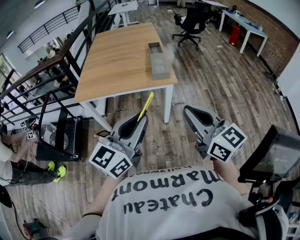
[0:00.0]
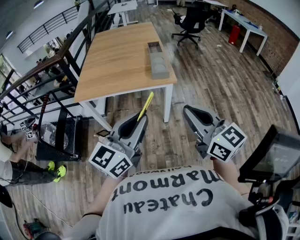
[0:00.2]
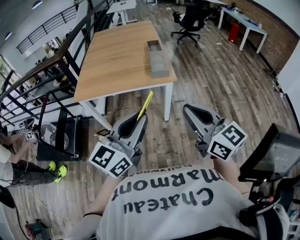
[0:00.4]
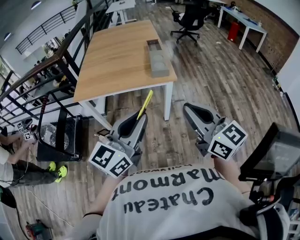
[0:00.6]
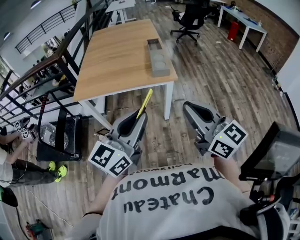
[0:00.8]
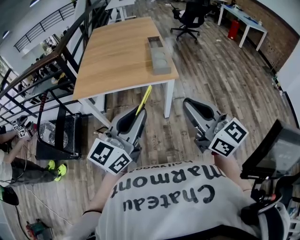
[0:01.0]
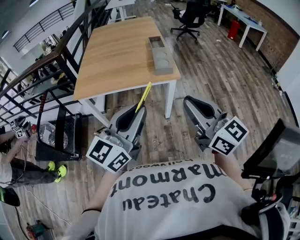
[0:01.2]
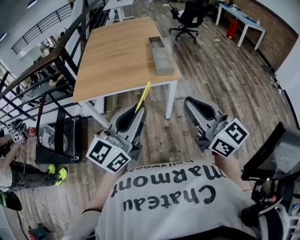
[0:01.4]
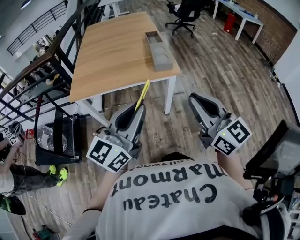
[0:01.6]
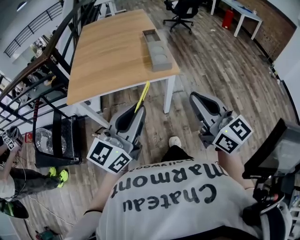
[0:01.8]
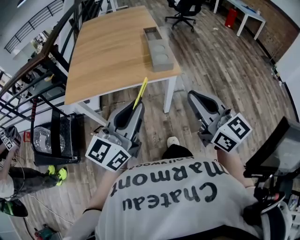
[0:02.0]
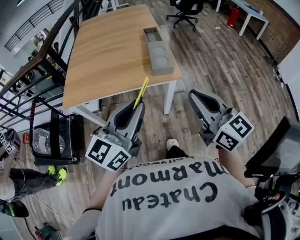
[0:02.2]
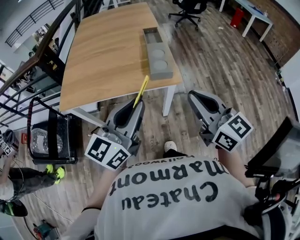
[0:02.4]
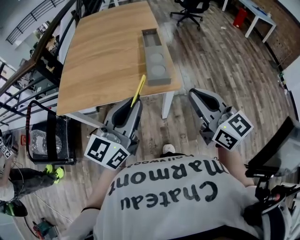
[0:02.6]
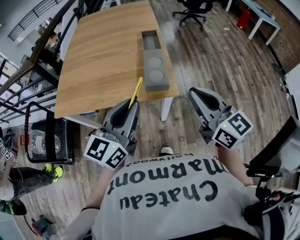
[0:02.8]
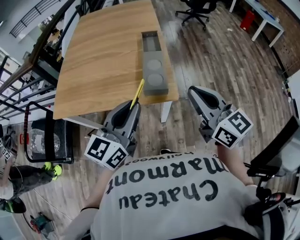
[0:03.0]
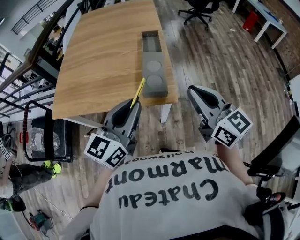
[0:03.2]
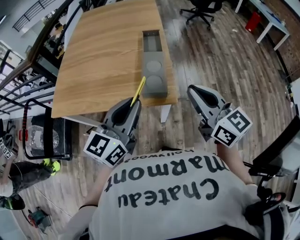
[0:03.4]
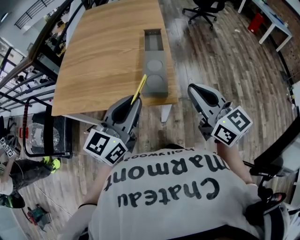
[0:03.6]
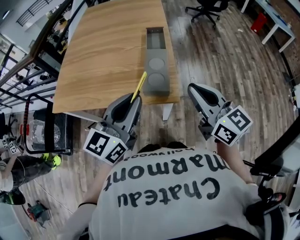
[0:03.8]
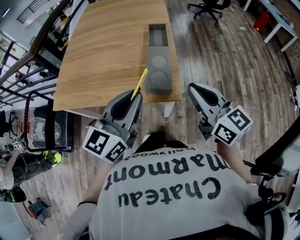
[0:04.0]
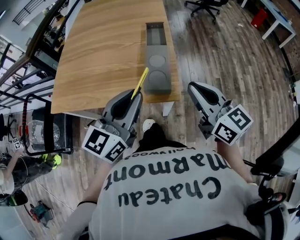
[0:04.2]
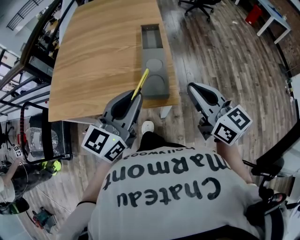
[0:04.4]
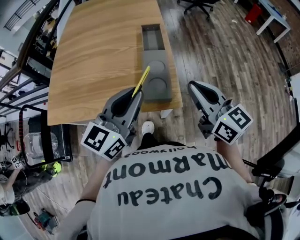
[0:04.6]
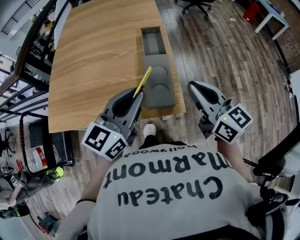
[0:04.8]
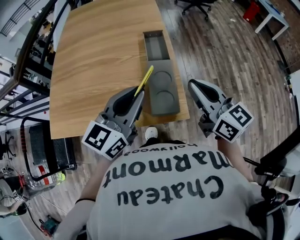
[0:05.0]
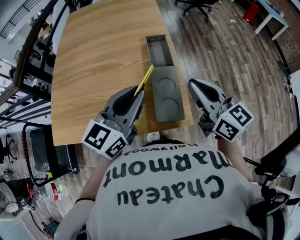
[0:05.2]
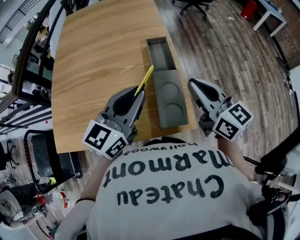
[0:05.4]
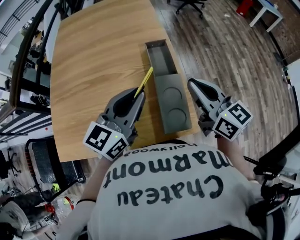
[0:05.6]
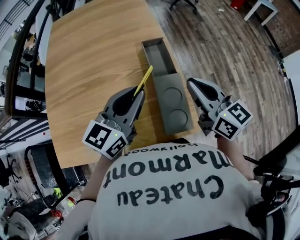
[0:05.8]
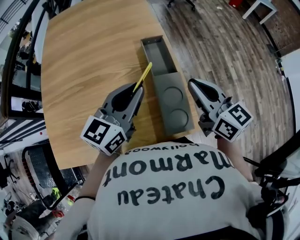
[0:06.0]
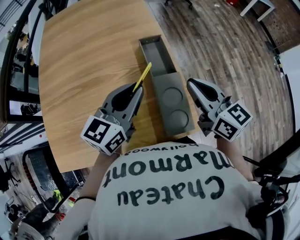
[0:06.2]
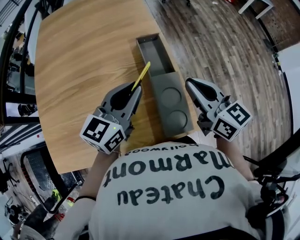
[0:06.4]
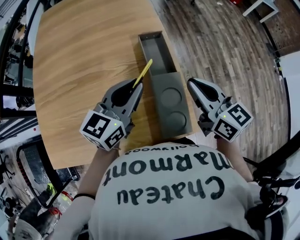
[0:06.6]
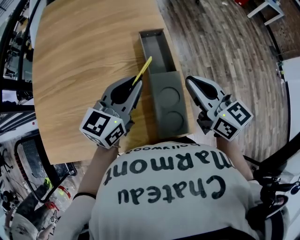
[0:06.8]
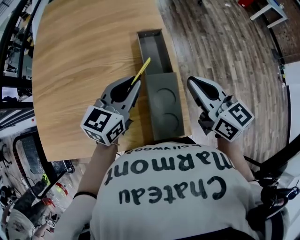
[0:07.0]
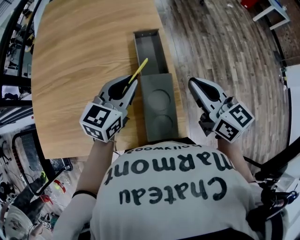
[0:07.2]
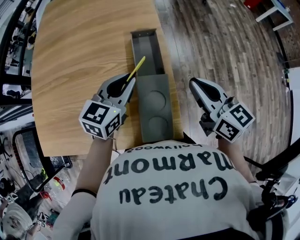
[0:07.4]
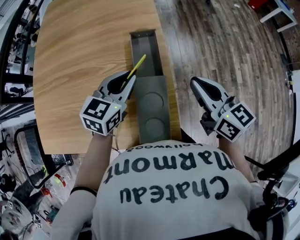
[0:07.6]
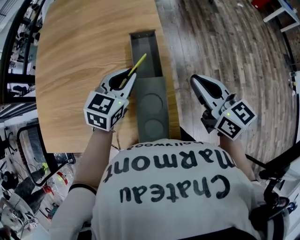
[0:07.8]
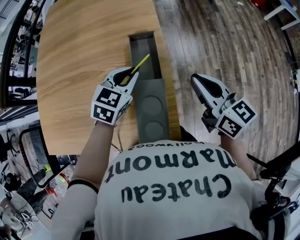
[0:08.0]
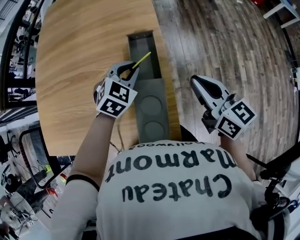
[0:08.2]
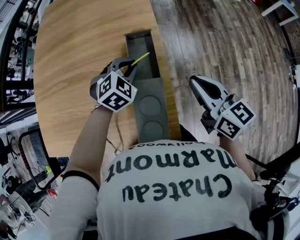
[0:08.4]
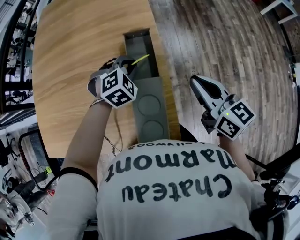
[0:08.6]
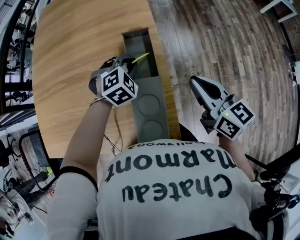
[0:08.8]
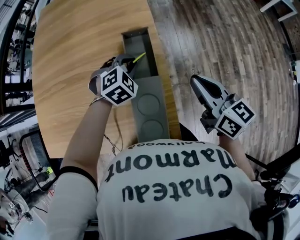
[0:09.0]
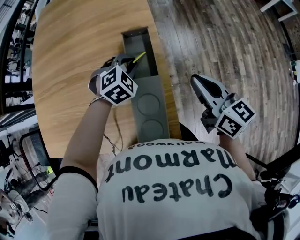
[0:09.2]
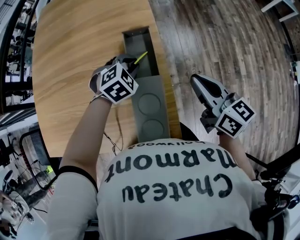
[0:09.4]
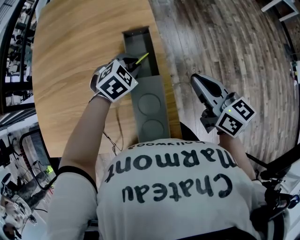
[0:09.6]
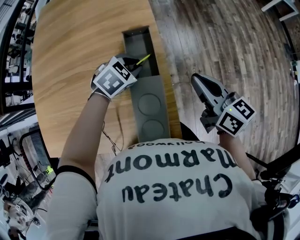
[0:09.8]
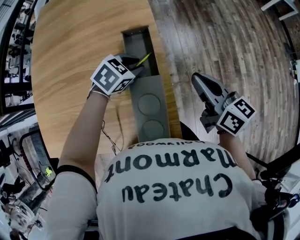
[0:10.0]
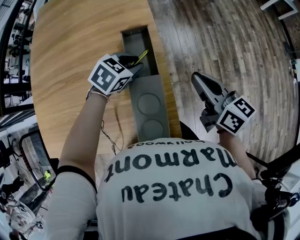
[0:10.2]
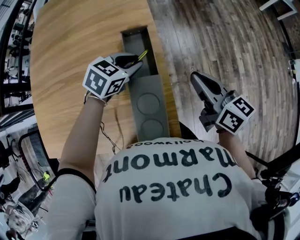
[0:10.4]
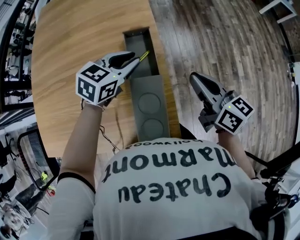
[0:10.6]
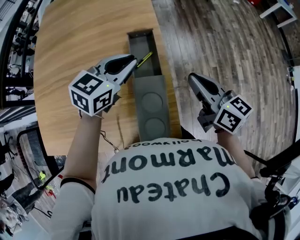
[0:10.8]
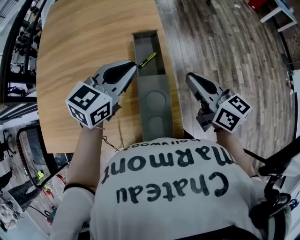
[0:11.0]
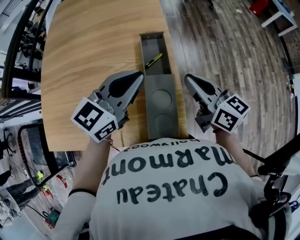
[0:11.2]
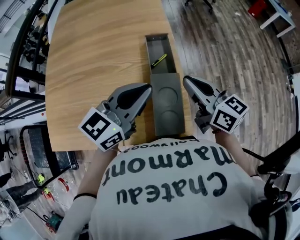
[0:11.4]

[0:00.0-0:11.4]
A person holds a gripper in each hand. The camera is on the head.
0:00.0 to 0:01.4: The left gripper shifts by about 5 cm; the right gripper ends up about 5 cm from where it was.
0:01.4 to 0:02.8: Both grippers move forward, approximately 25 cm.
0:02.8 to 0:04.2: The grippers both shift forward by approximately 10 cm.
0:04.2 to 0:05.6: The right gripper moves forward and to the left, some 20 cm. Meanwhile the left gripper moves forward, some 20 cm.
0:05.6 to 0:07.2: The left gripper is displaced downward and forward by about 15 cm; the right gripper goes about 5 cm downward.
0:07.2 to 0:08.6: The right gripper moves to the right, about 5 cm. Meanwhile the left gripper shifts some 15 cm downward, forward and to the right, and points its fingers approximately 40 degrees further downward.
0:08.6 to 0:10.0: The left gripper swivels about 30 degrees.
0:10.0 to 0:11.4: The right gripper goes roughly 10 cm to the left and backward. The left gripper is displaced upward and backward by some 25 cm, and points its fingers roughly 50 degrees further upward.

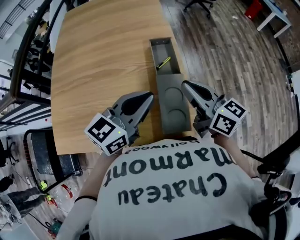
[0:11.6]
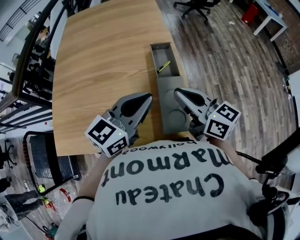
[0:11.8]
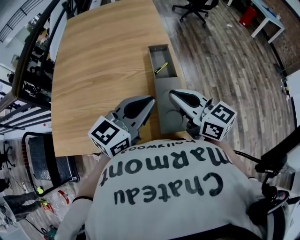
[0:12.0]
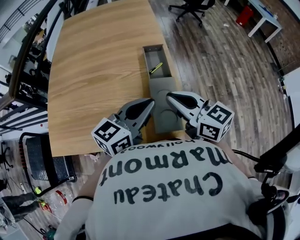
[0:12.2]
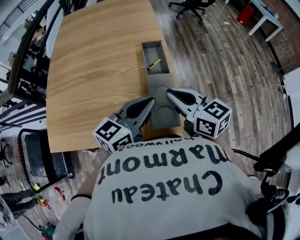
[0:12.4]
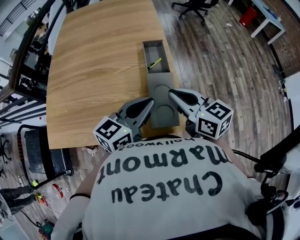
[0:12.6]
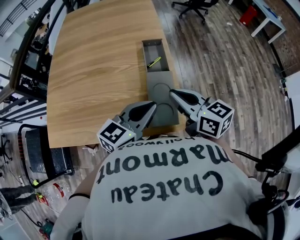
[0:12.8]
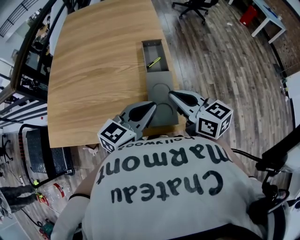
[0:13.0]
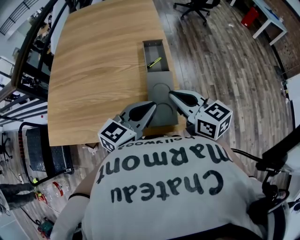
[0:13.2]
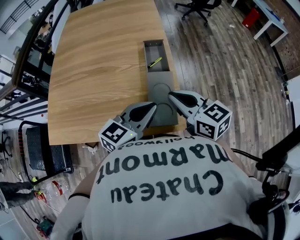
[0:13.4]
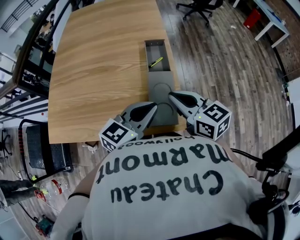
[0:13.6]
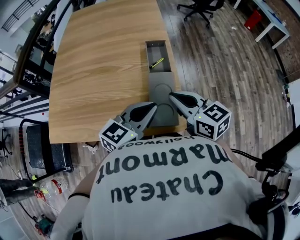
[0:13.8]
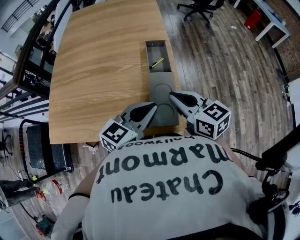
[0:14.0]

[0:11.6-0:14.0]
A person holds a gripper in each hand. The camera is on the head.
0:11.6 to 0:12.8: Both grippers travel together backward, roughly 5 cm.
0:12.8 to 0:14.0: The grippers move only a little.

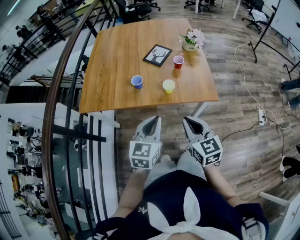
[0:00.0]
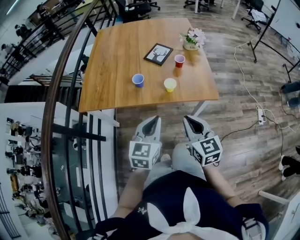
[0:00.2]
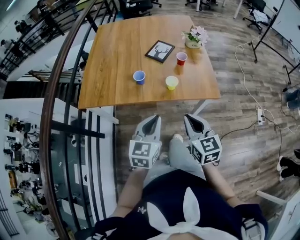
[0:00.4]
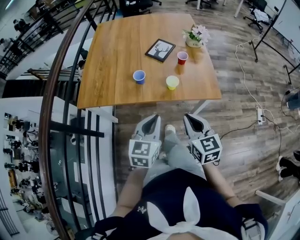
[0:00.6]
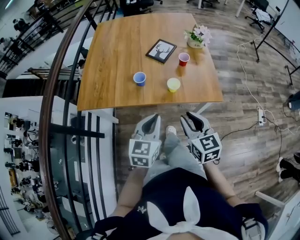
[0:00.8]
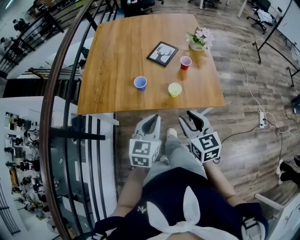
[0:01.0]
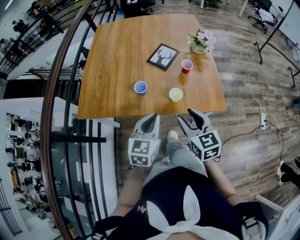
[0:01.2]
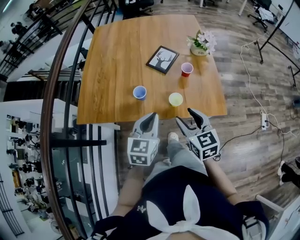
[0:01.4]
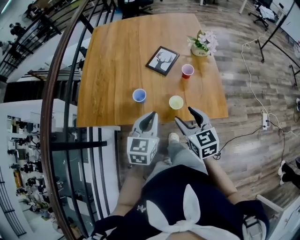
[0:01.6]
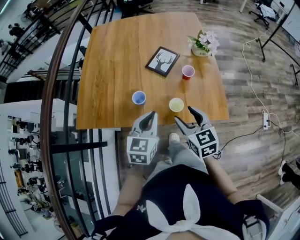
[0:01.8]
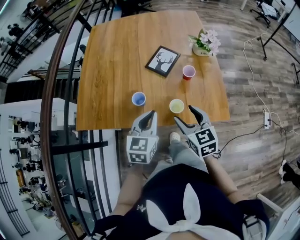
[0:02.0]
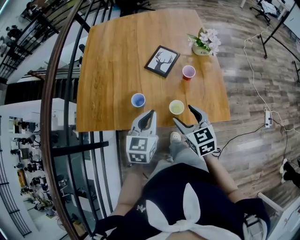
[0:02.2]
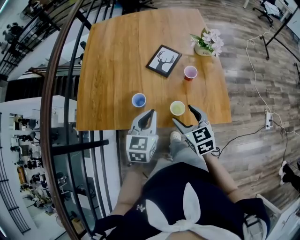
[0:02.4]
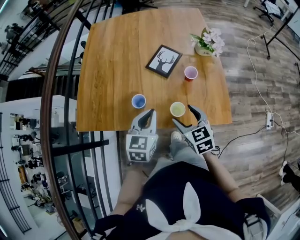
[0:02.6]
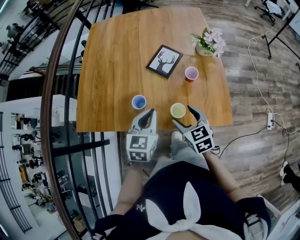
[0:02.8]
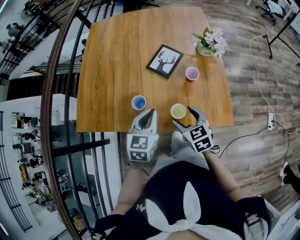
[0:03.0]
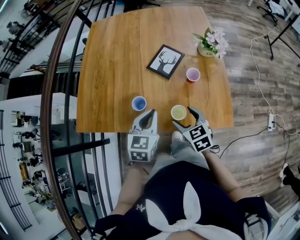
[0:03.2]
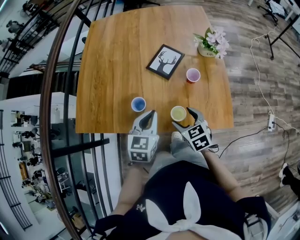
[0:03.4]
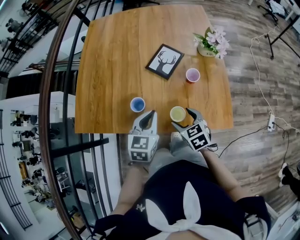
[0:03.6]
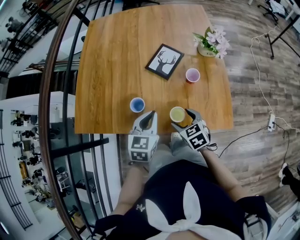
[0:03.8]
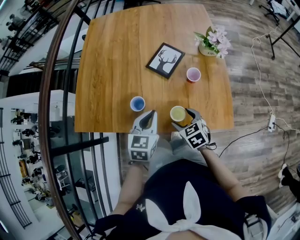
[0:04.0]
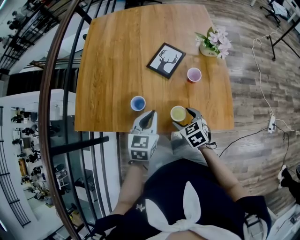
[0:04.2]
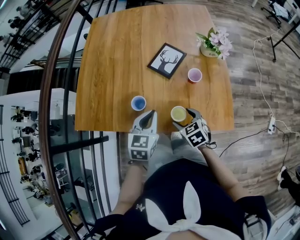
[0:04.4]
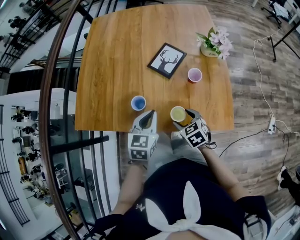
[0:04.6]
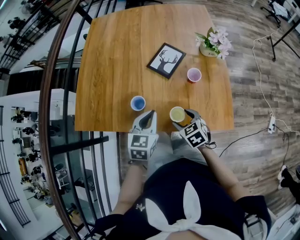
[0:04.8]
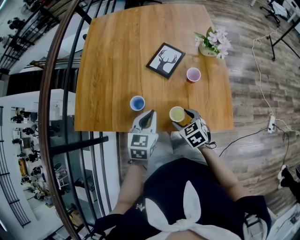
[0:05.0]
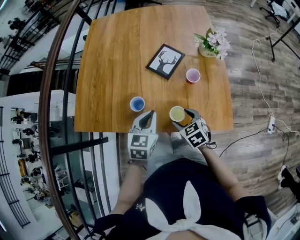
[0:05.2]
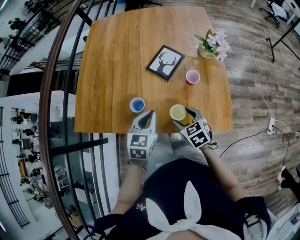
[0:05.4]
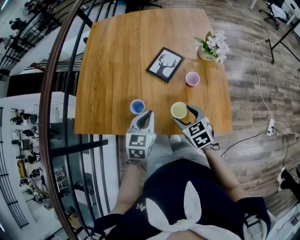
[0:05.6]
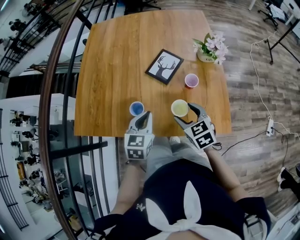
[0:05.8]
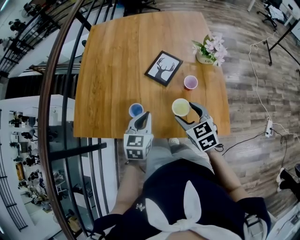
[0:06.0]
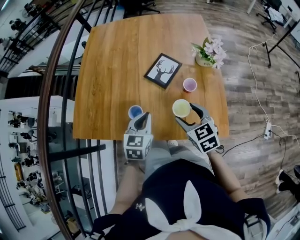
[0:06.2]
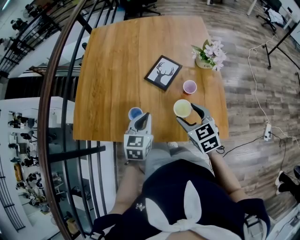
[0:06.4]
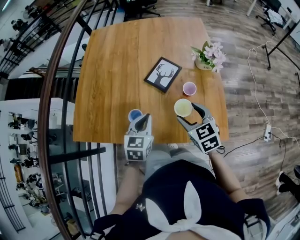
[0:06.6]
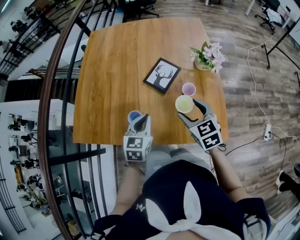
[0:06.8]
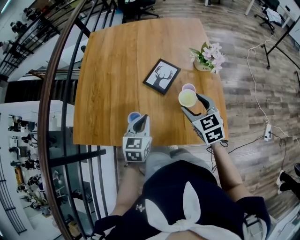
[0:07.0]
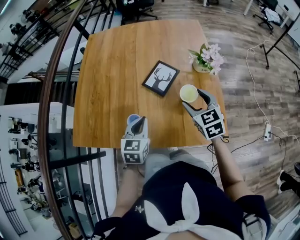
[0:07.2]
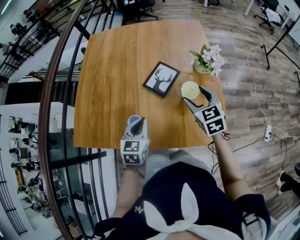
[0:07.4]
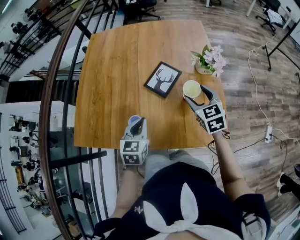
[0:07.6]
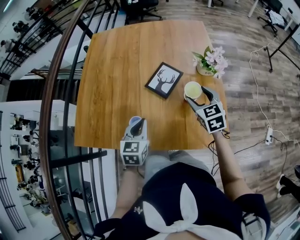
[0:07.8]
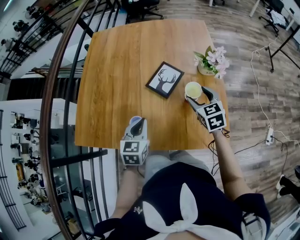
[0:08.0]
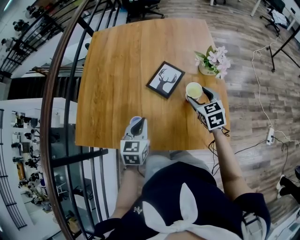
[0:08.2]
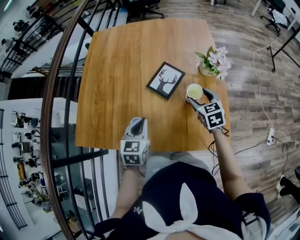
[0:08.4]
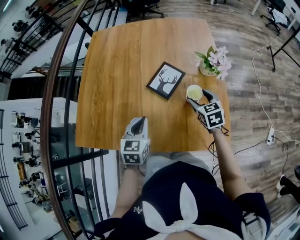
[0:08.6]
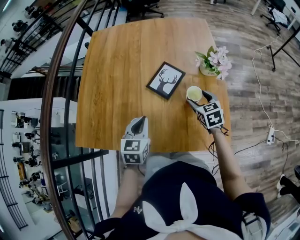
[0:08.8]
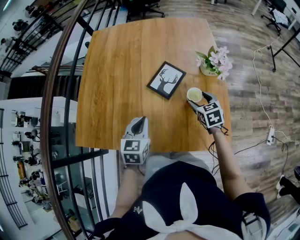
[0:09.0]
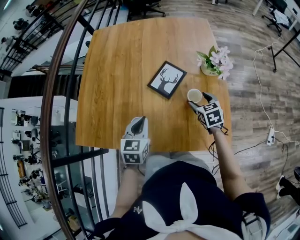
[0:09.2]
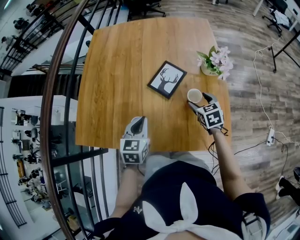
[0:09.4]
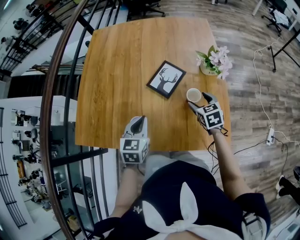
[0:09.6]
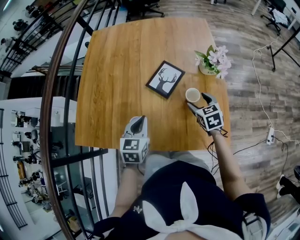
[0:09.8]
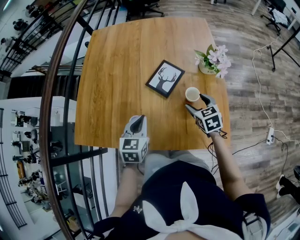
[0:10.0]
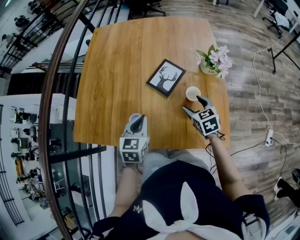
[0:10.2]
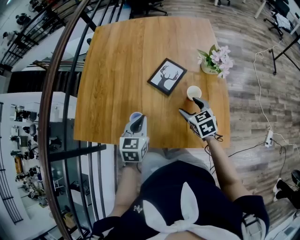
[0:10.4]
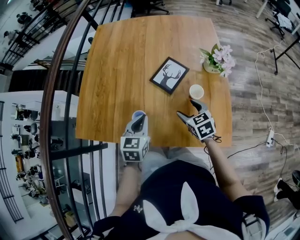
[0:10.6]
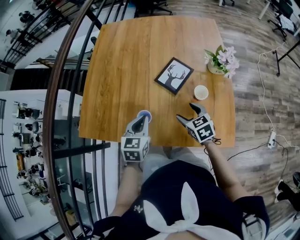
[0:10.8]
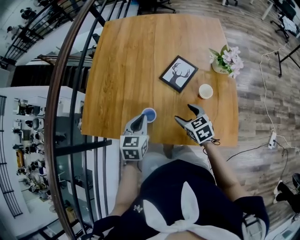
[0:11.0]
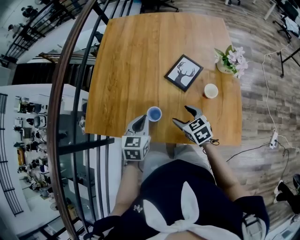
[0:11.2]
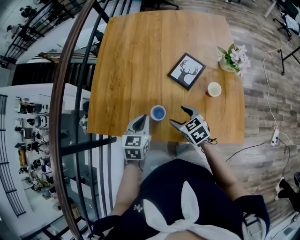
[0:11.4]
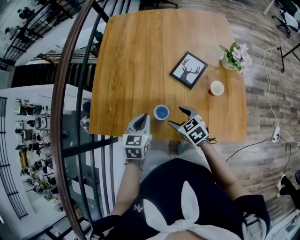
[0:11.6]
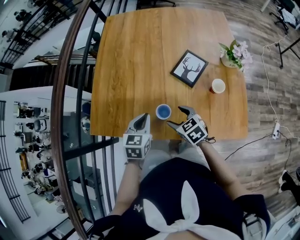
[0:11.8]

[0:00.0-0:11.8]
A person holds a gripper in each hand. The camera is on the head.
0:00.0 to 0:01.4: Both grippers move forward, approximately 15 cm. The right gripper opens its fingers.
0:01.4 to 0:03.0: The right gripper heads forward and downward, covering approximately 15 cm. The left gripper is displaced forward by some 10 cm.
0:03.0 to 0:04.4: The right gripper heads downward, covering some 10 cm.
0:04.4 to 0:06.0: The right gripper travels upward by roughly 10 cm.
0:06.0 to 0:07.4: The right gripper goes roughly 10 cm forward and to the right.
0:07.4 to 0:08.8: The right gripper moves downward, some 10 cm.
0:08.8 to 0:10.4: The right gripper travels to the left and backward by about 10 cm.
0:10.4 to 0:11.8: The left gripper is displaced to the left by about 15 cm. Meanwhile the right gripper is displaced to the left by about 20 cm.
